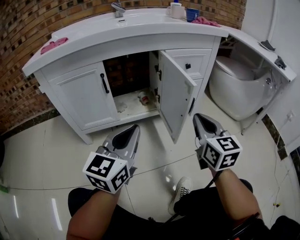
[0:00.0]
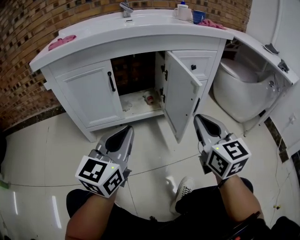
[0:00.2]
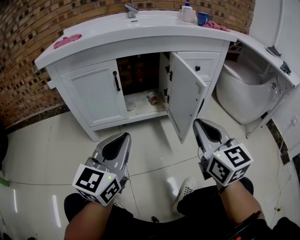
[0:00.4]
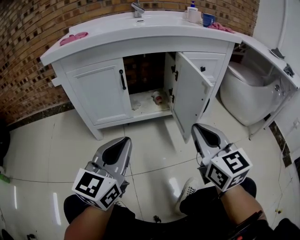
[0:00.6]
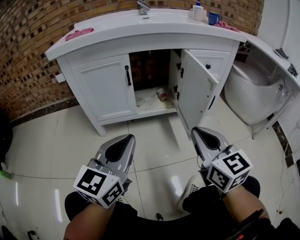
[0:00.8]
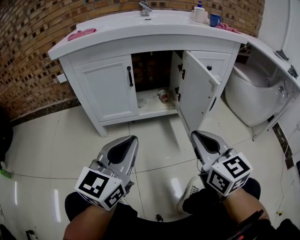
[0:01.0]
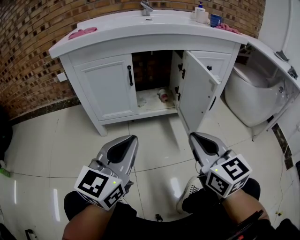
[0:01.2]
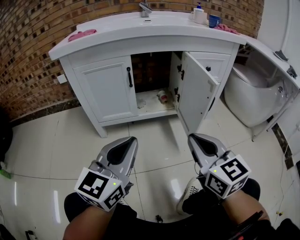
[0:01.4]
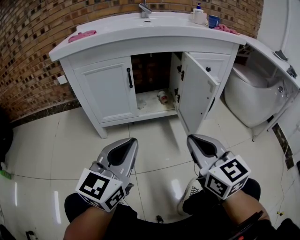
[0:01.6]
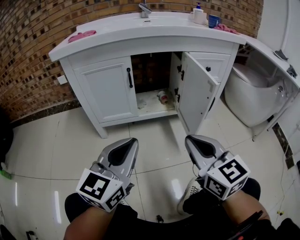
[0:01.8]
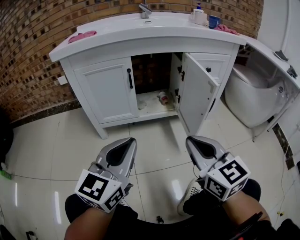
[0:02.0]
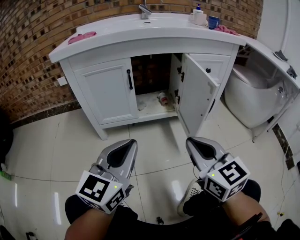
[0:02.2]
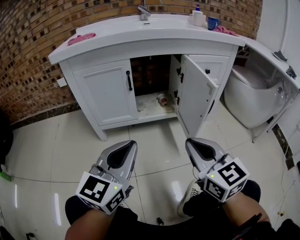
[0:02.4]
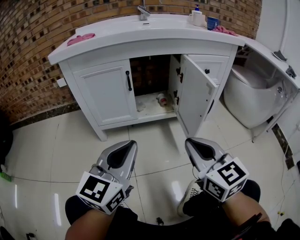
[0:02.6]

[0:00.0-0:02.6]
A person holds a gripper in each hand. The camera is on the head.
0:00.0 to 0:01.2: The left gripper moves backward and to the left, some 10 cm. The right gripper goes approximately 15 cm to the left and backward.
0:01.2 to 0:02.6: Both grippers stay put.

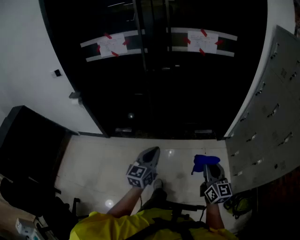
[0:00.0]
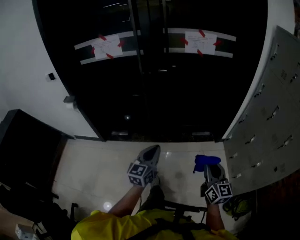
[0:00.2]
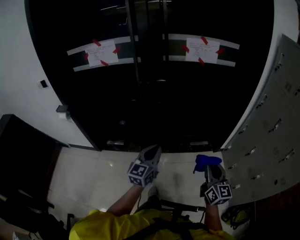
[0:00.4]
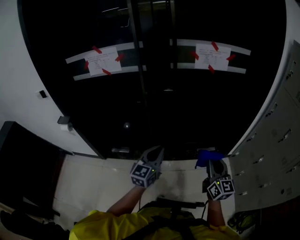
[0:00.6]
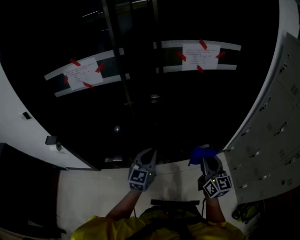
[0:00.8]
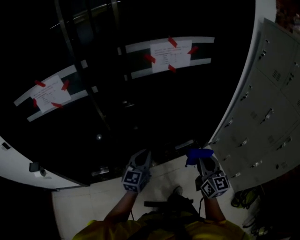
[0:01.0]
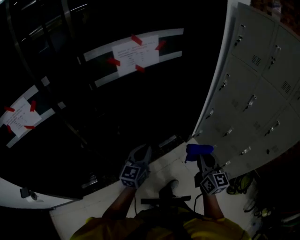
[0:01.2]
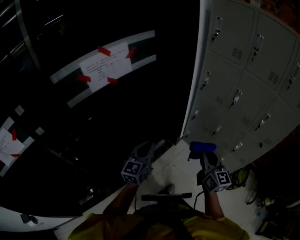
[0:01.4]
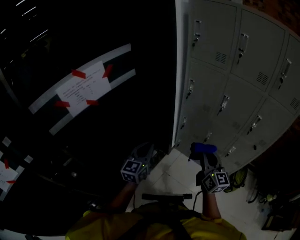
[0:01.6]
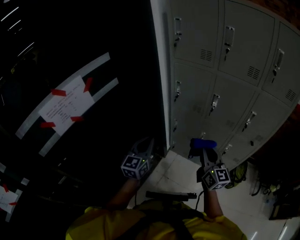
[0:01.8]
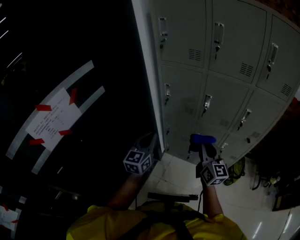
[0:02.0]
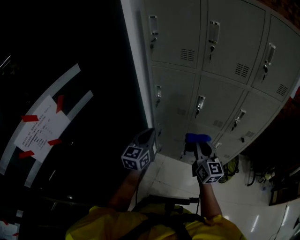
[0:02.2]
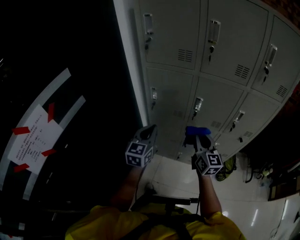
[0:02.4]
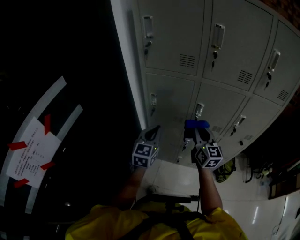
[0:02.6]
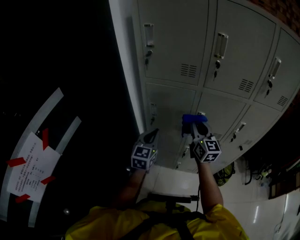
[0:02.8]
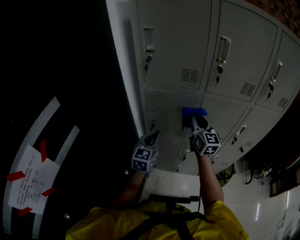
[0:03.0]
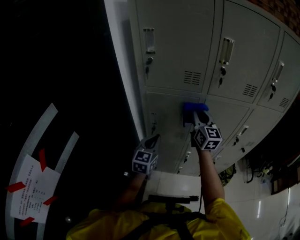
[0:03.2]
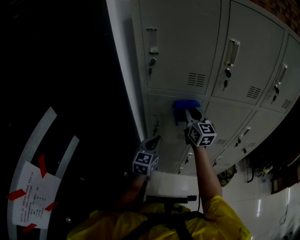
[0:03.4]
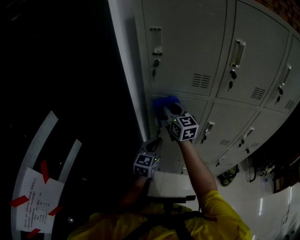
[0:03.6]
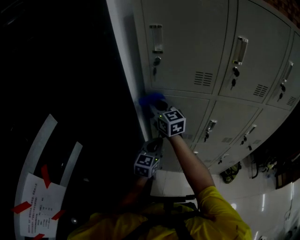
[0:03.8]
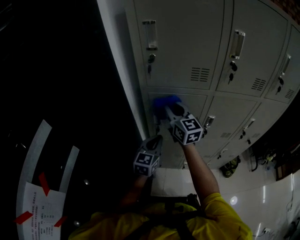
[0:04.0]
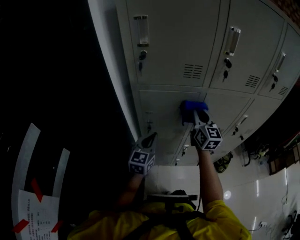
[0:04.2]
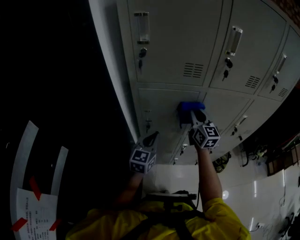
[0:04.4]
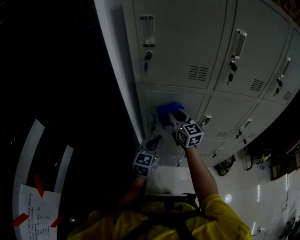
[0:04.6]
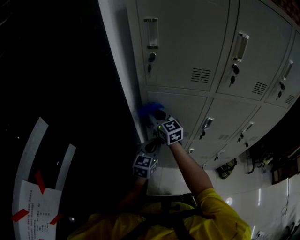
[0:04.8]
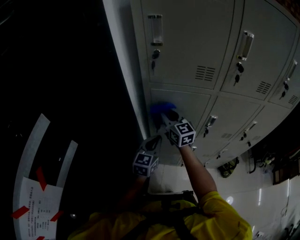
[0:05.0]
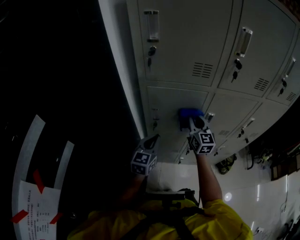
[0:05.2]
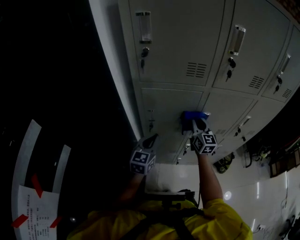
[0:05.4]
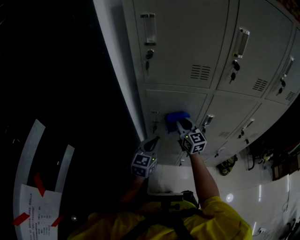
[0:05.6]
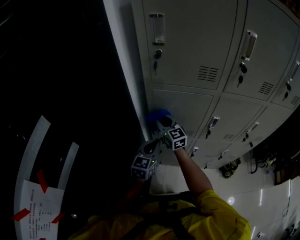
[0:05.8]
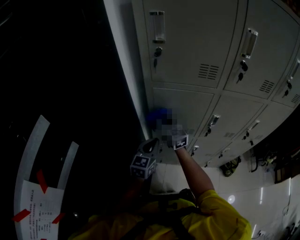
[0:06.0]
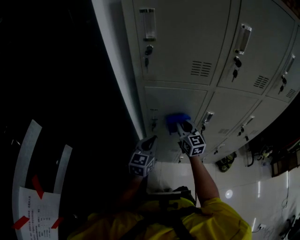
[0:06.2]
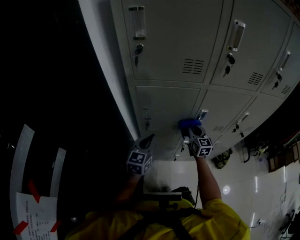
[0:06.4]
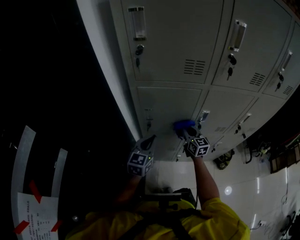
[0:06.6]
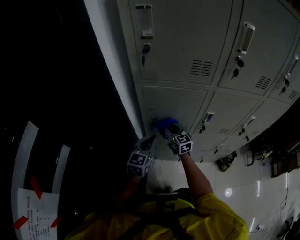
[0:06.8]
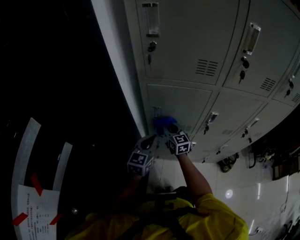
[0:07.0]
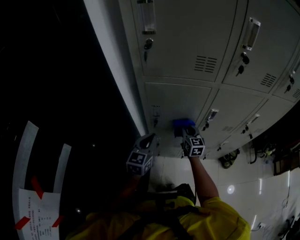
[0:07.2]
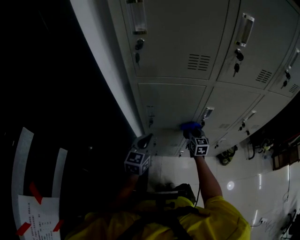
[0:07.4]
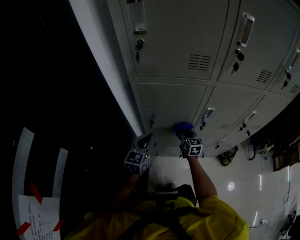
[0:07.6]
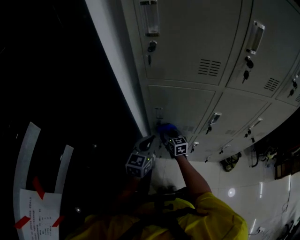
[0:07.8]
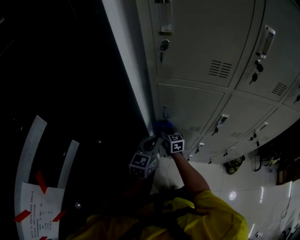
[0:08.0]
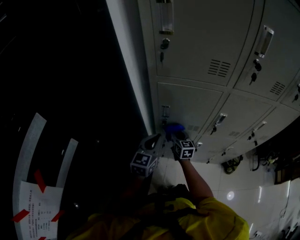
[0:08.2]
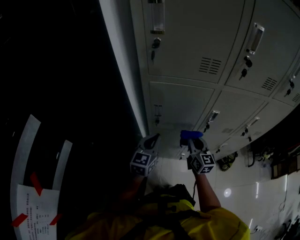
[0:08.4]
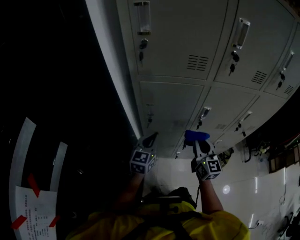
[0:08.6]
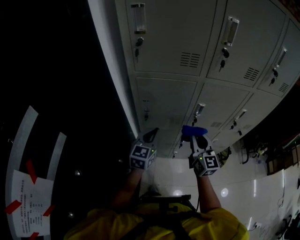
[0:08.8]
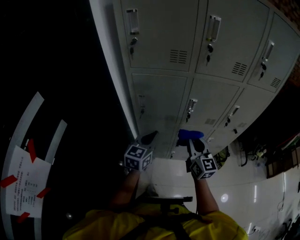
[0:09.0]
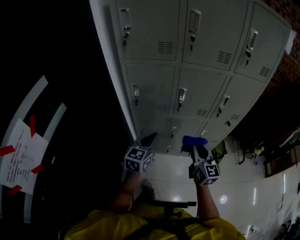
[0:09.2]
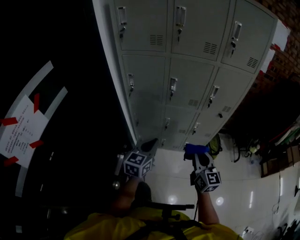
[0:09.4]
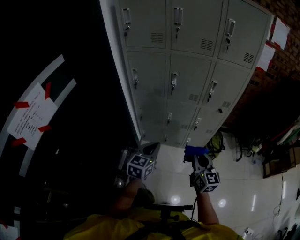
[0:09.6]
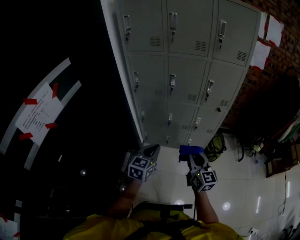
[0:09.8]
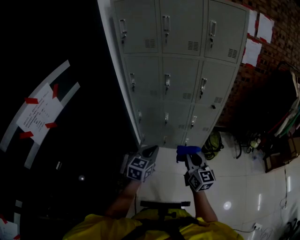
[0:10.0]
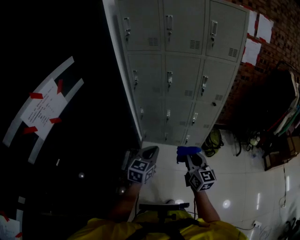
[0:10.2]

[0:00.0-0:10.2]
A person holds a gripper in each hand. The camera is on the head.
0:00.0 to 0:01.4: Both grippers are carried some 50 cm. The right gripper turns by approximately 40 degrees. The left gripper turns by roughly 40 degrees.
0:01.4 to 0:03.0: Both grippers are carried roughly 50 cm. The right gripper rotates approximately 40 degrees. Meanwhile the left gripper changes its angle by some 30 degrees.
0:03.0 to 0:04.4: The left gripper shifts by about 5 cm. Meanwhile the right gripper travels forward and downward by approximately 10 cm, and travels to the left and back again, some 25 cm each way.
0:04.4 to 0:05.8: The left gripper changes place by approximately 5 cm. The right gripper swings left and right, some 25 cm each way, with 2 reversals, and changes its angle by about 20 degrees.
0:05.8 to 0:07.2: The right gripper moves left and right over roughly 25 cm, changing direction 2 times, and turns by roughly 30 degrees.
0:07.2 to 0:08.8: The right gripper moves left and right over about 25 cm, changing direction 2 times; the left gripper goes some 5 cm to the right.
0:08.8 to 0:10.2: The pair of grippers is taken backward and to the right, roughly 50 cm.

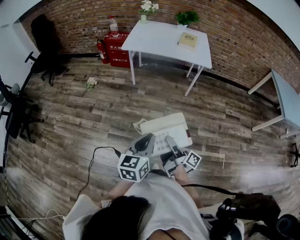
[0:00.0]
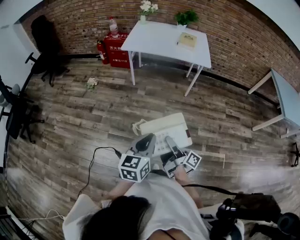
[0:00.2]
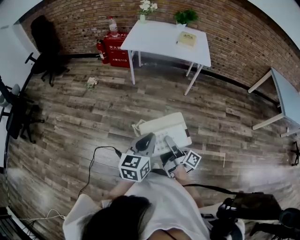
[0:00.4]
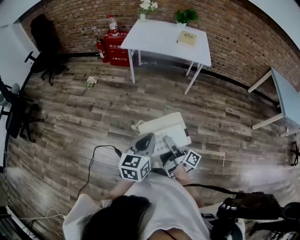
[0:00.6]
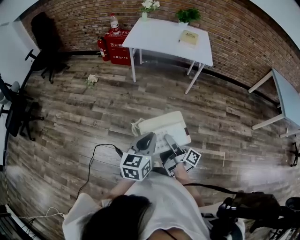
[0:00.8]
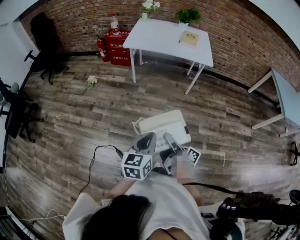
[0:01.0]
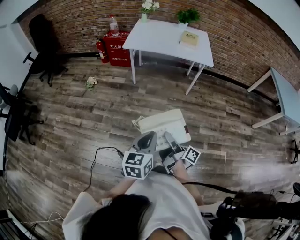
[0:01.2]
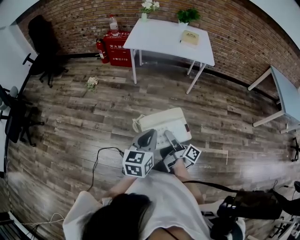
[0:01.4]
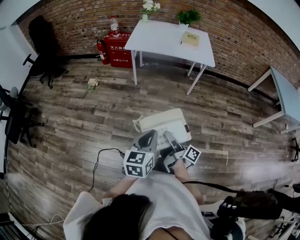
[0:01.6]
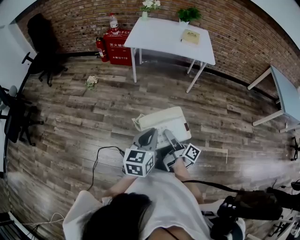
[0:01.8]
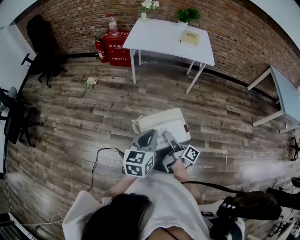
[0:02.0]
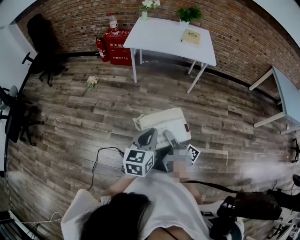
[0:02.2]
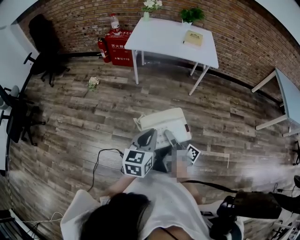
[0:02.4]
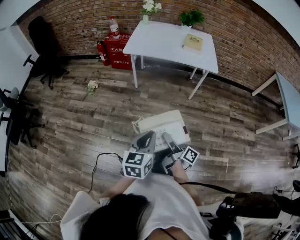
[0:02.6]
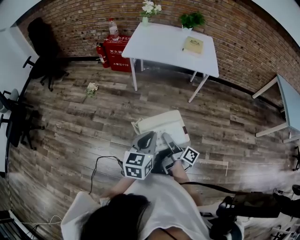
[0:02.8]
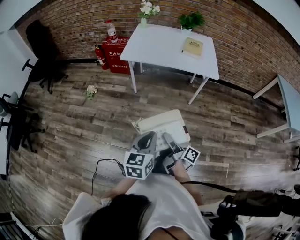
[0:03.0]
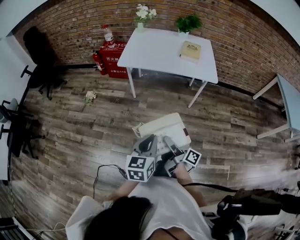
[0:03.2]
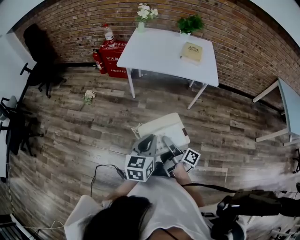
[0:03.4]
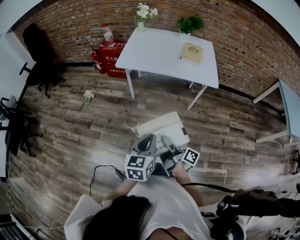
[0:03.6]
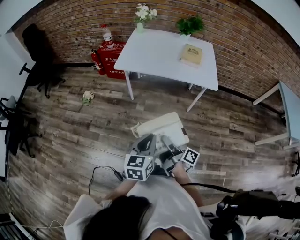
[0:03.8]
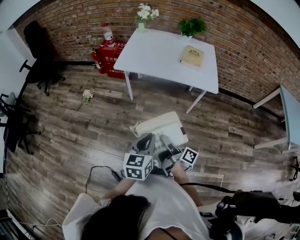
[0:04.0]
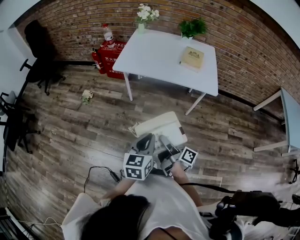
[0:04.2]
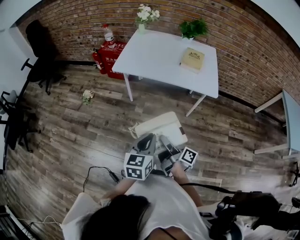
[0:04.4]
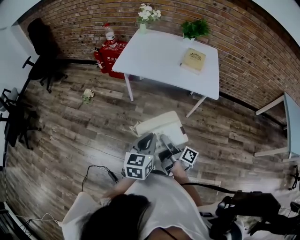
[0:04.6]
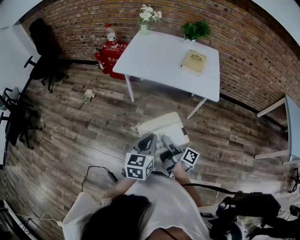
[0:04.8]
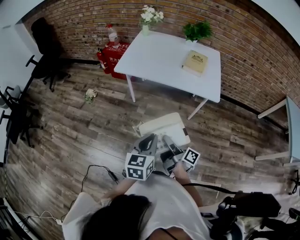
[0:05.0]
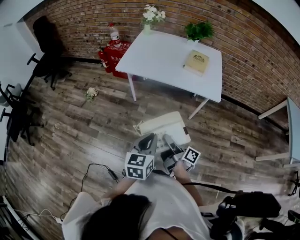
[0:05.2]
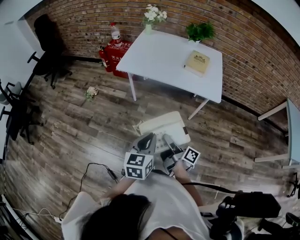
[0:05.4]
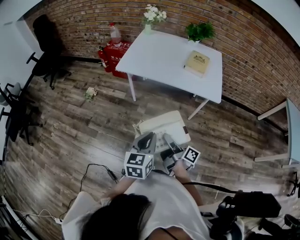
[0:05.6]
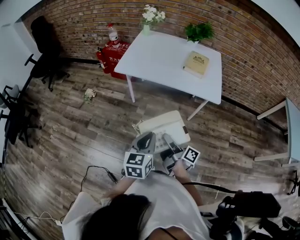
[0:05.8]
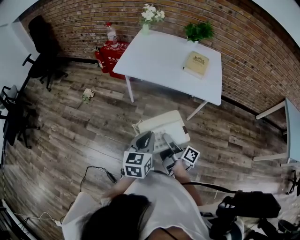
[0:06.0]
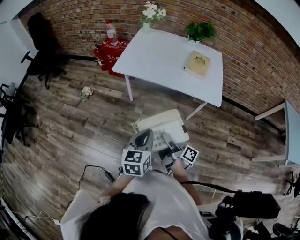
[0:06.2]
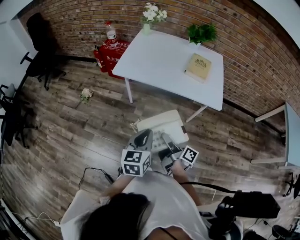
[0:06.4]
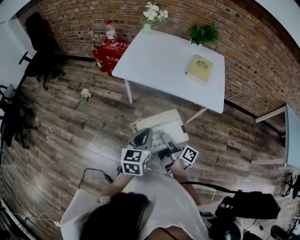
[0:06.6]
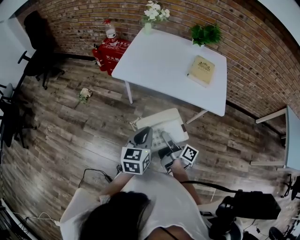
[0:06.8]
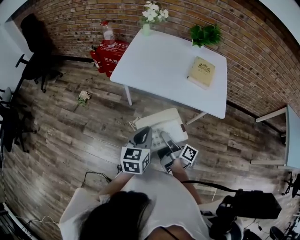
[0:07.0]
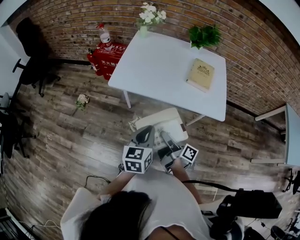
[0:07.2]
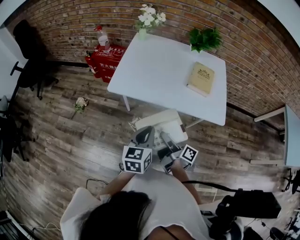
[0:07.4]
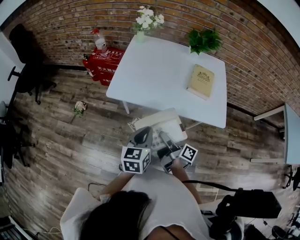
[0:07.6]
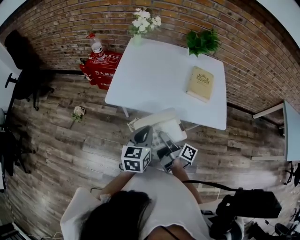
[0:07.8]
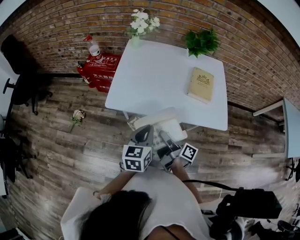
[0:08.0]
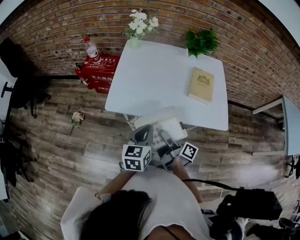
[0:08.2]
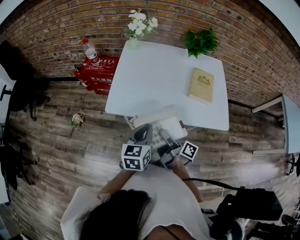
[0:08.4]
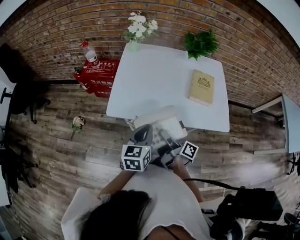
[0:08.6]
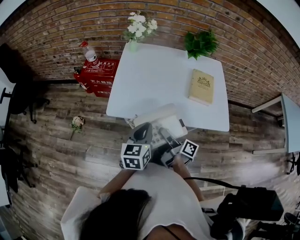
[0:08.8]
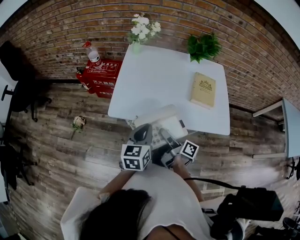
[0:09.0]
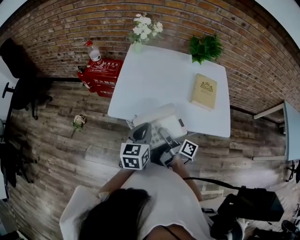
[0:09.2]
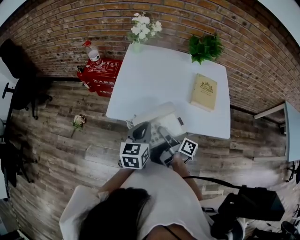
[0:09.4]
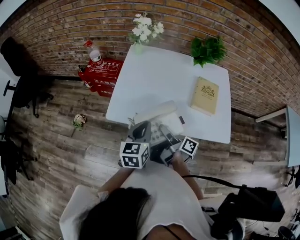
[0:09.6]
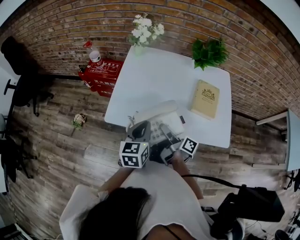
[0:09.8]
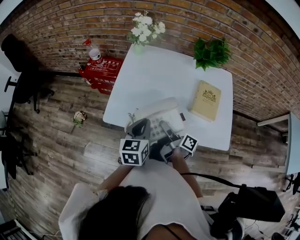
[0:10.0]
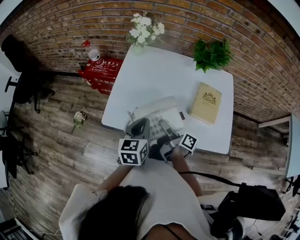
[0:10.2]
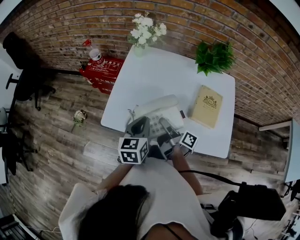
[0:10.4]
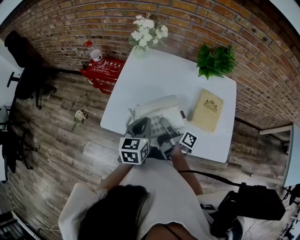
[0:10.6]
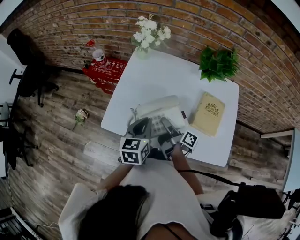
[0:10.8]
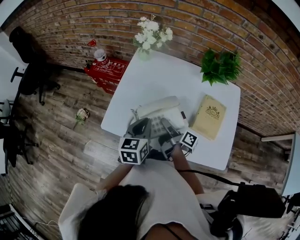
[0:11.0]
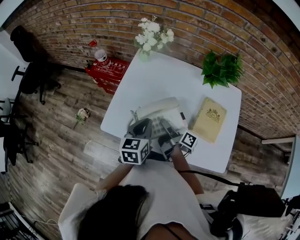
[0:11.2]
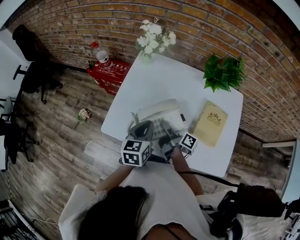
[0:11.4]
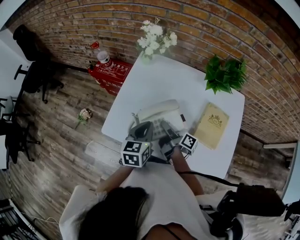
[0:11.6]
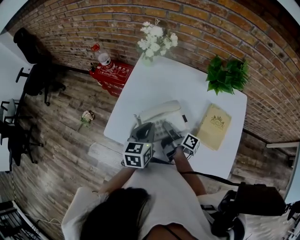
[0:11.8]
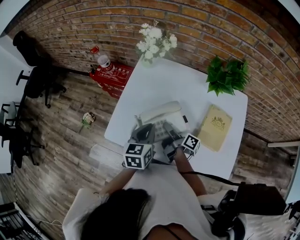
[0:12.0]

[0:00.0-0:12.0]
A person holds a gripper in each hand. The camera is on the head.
0:00.0 to 0:01.6: The left gripper ends up about 5 cm from where it was.
0:01.6 to 0:03.0: The left gripper ends up approximately 15 cm from where it was.
0:03.0 to 0:04.4: The left gripper ends up some 15 cm from where it was.
0:04.4 to 0:06.0: The left gripper shifts by roughly 5 cm.
0:06.0 to 0:07.6: The left gripper ends up about 25 cm from where it was.
0:07.6 to 0:09.0: The left gripper shifts by roughly 10 cm.
0:09.0 to 0:10.4: The left gripper changes place by some 15 cm.
0:10.4 to 0:12.0: The left gripper shifts by some 10 cm.
